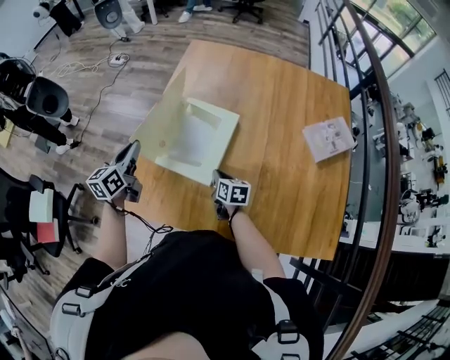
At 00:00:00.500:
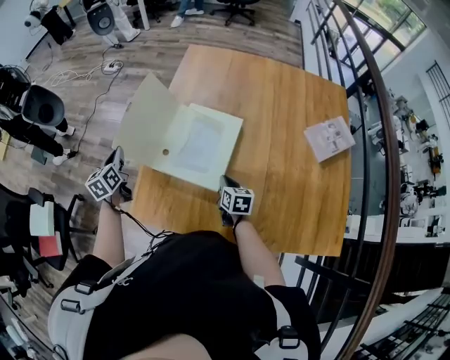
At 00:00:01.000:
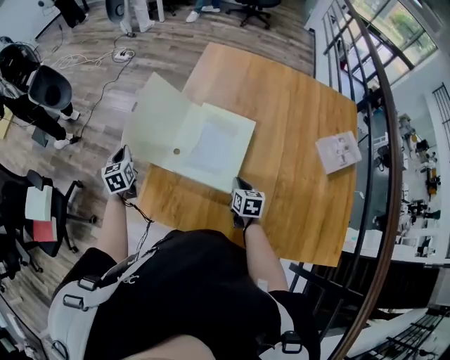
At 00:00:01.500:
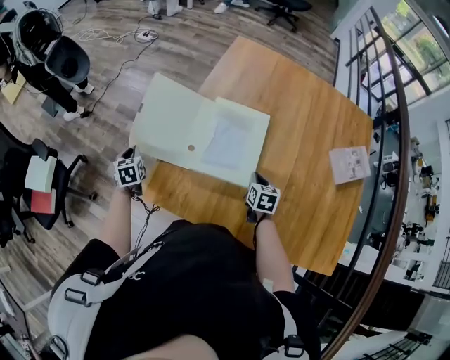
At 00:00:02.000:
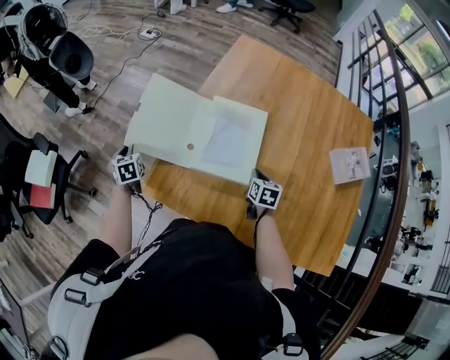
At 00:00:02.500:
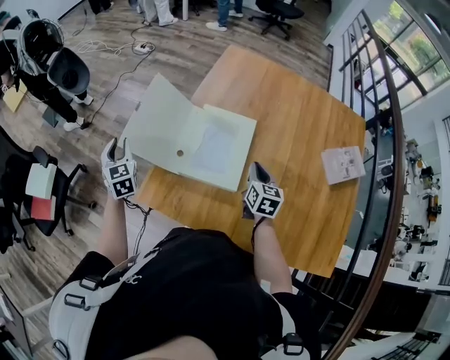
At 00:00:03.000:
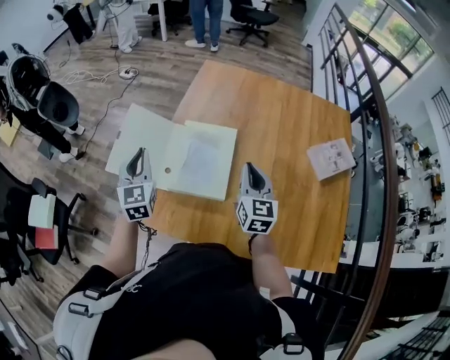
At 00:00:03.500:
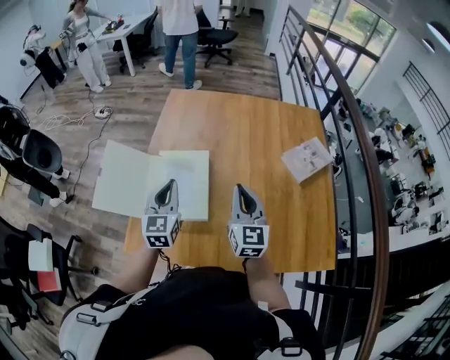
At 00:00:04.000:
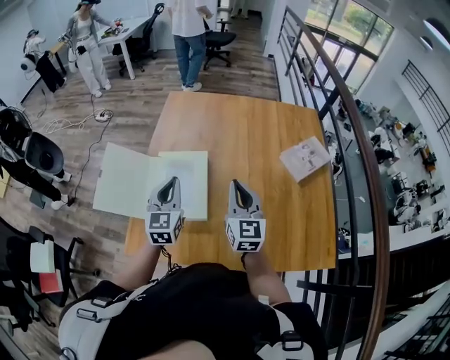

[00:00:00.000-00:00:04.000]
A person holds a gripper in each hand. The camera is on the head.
00:00:00.000 to 00:00:02.000: The left gripper goes roughly 30 cm to the left and downward, and turns by approximately 50 degrees.
00:00:02.000 to 00:00:04.000: The right gripper is displaced upward by about 25 cm, and angles its fingers upward, by some 40 degrees, while the left gripper ends up roughly 50 cm from where it was, and angles its fingers upward, by approximately 30 degrees.

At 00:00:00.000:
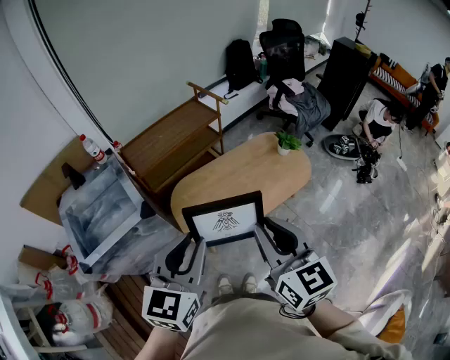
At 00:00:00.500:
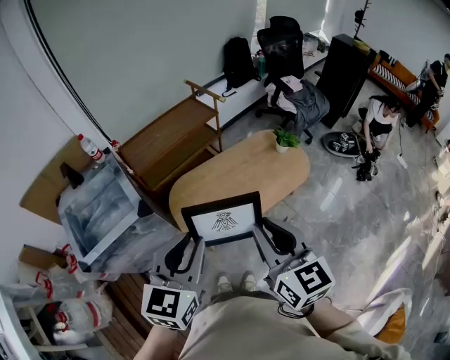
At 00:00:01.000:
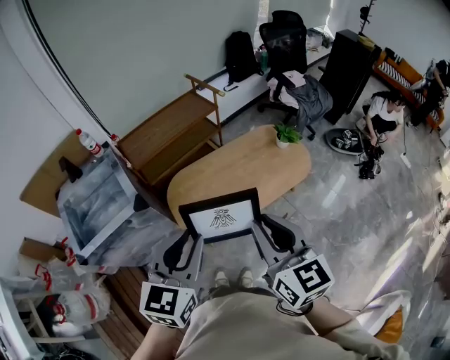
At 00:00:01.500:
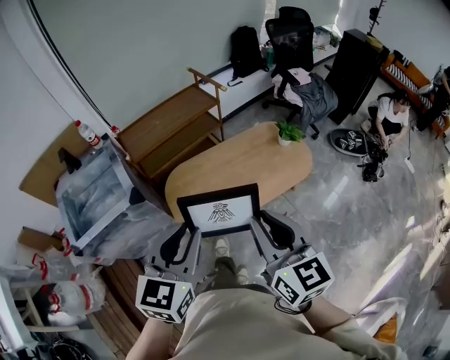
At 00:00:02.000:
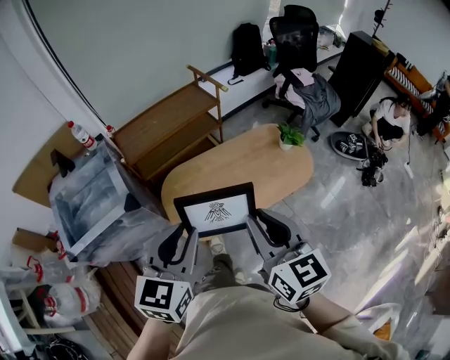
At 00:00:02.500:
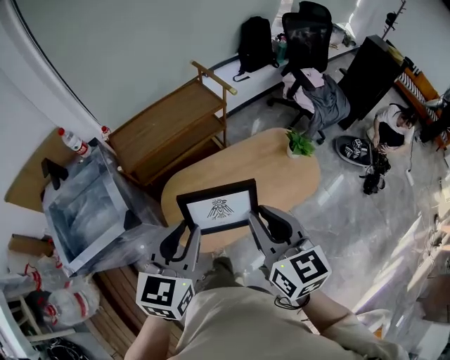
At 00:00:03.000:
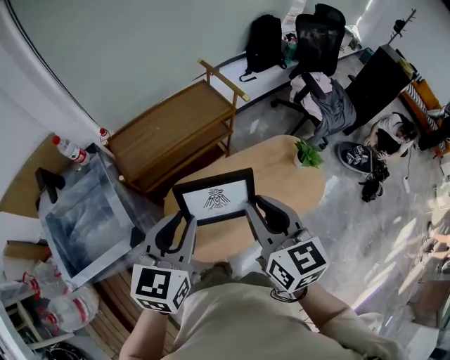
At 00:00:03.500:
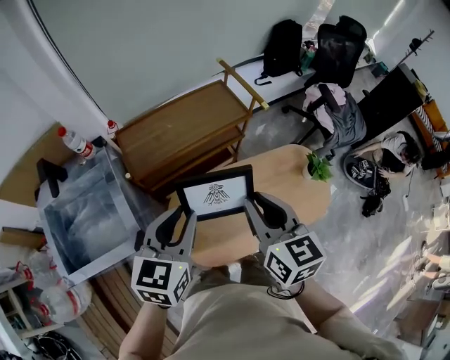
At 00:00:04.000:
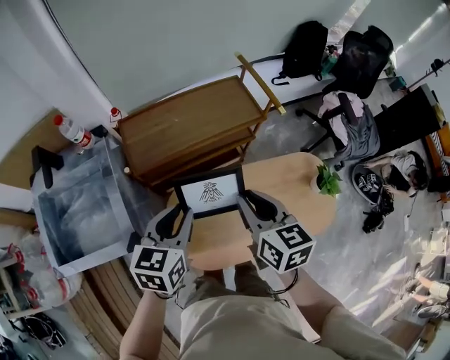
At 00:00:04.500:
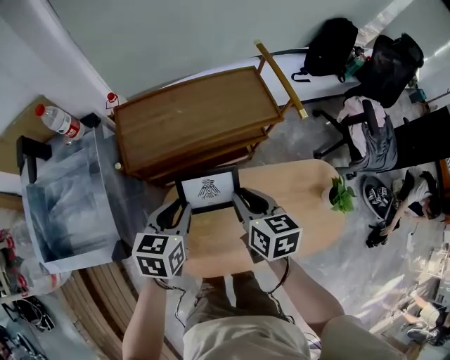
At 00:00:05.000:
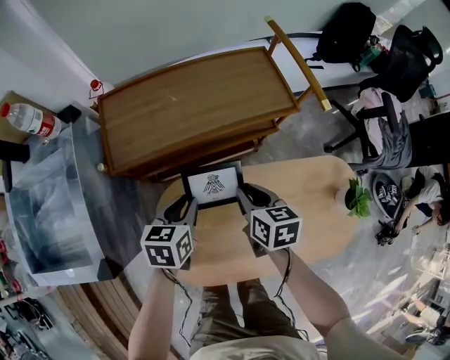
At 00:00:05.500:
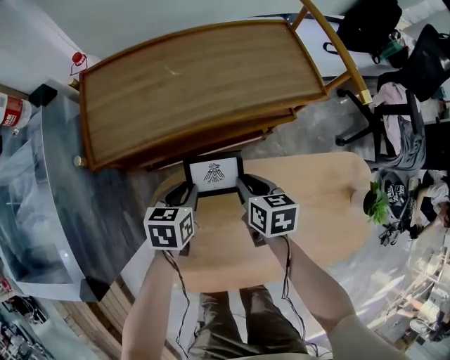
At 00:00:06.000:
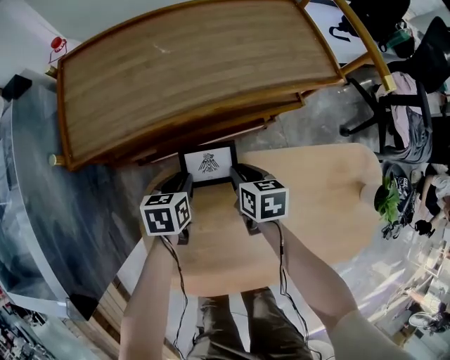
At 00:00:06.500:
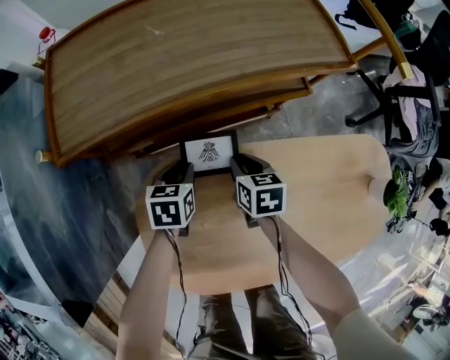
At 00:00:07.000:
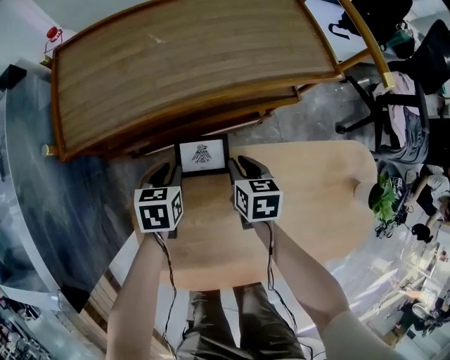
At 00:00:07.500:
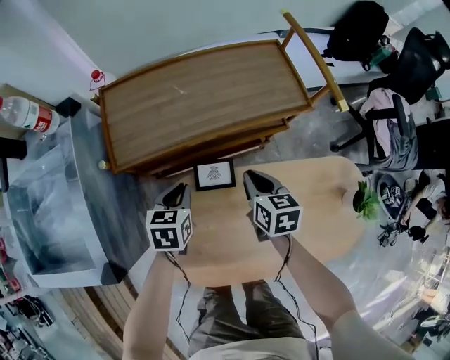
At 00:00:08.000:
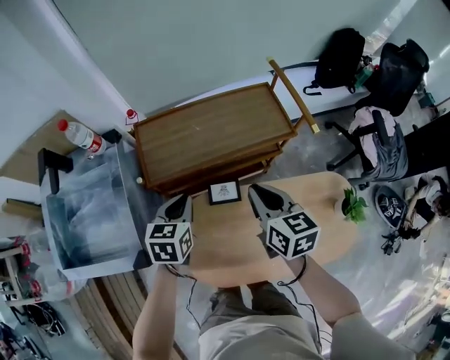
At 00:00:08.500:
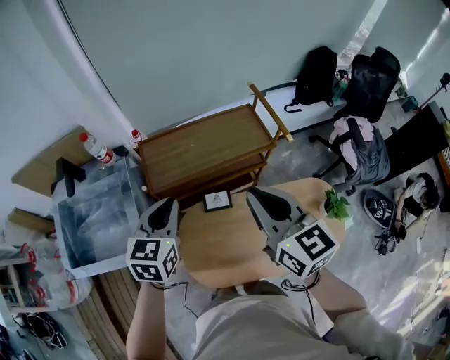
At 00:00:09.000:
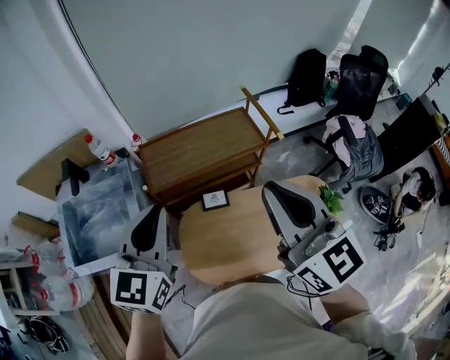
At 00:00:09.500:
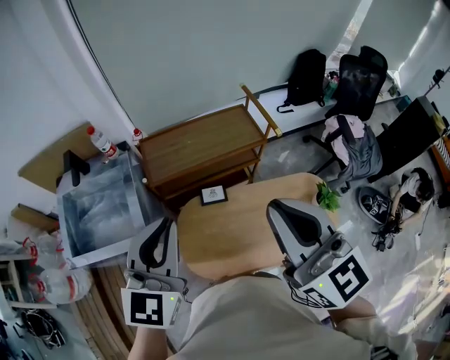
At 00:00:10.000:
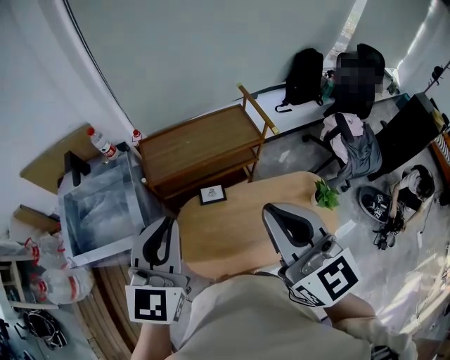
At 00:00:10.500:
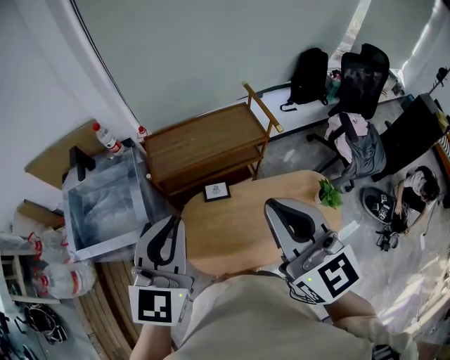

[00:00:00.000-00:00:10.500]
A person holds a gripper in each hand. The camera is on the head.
00:00:00.000 to 00:00:02.000: Both grippers move forward and to the right, approximately 10 cm.
00:00:02.000 to 00:00:04.000: The left gripper moves forward and downward, some 40 cm, and swivels about 20 degrees, while the right gripper goes about 40 cm forward, and rotates approximately 20 degrees.
00:00:04.000 to 00:00:06.500: The grippers both shift downward by approximately 60 cm. The right gripper changes its angle by approximately 30 degrees. The left gripper changes its angle by some 30 degrees.
00:00:06.500 to 00:00:08.500: The two grippers go some 70 cm upward. The right gripper tilts its fingers approximately 40 degrees upward. The left gripper changes its angle by roughly 30 degrees.
00:00:08.500 to 00:00:10.500: The grippers both shift backward and upward by approximately 20 cm.

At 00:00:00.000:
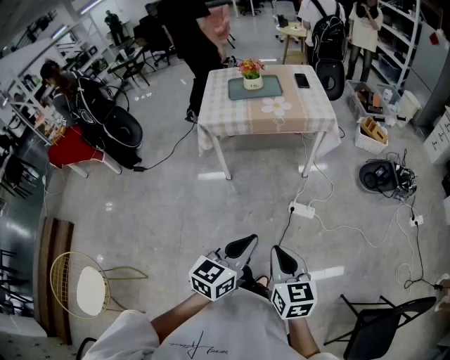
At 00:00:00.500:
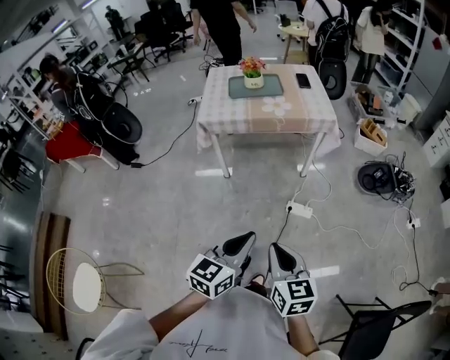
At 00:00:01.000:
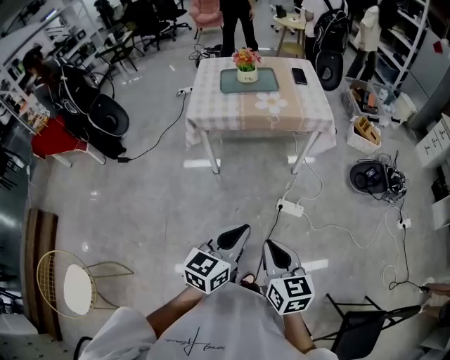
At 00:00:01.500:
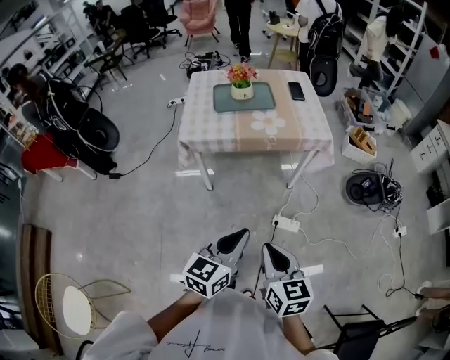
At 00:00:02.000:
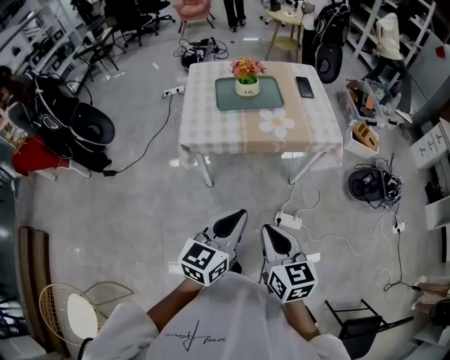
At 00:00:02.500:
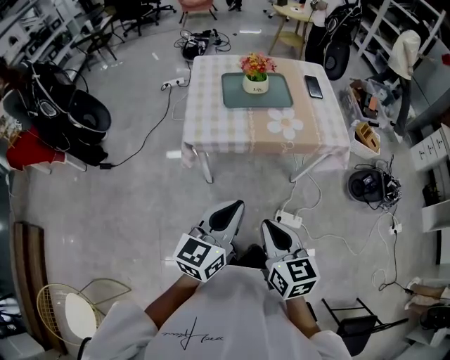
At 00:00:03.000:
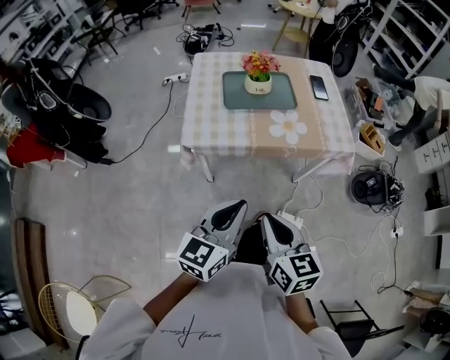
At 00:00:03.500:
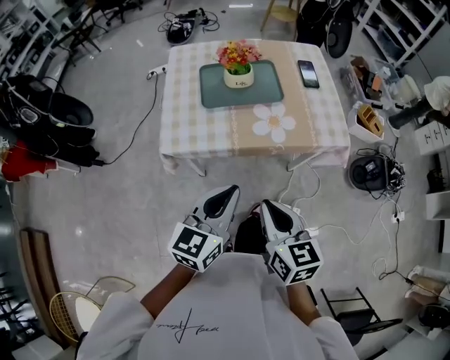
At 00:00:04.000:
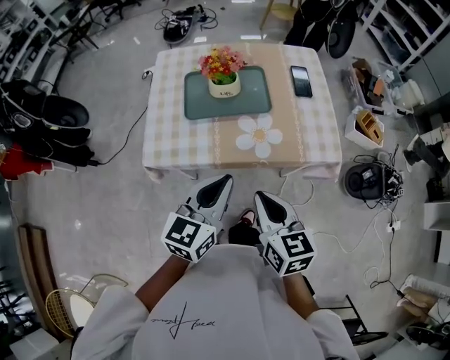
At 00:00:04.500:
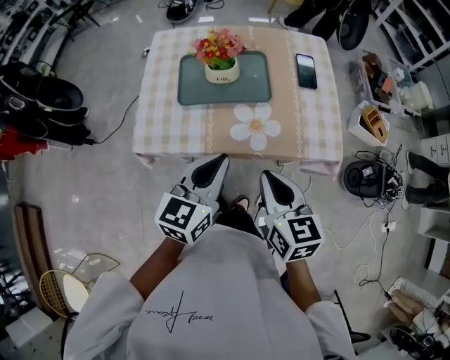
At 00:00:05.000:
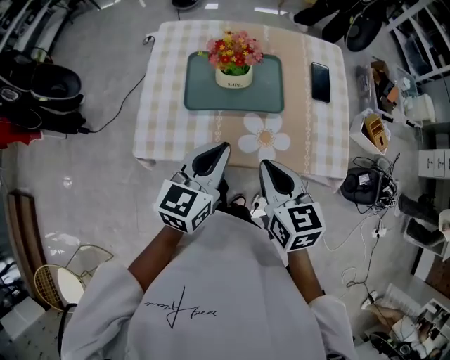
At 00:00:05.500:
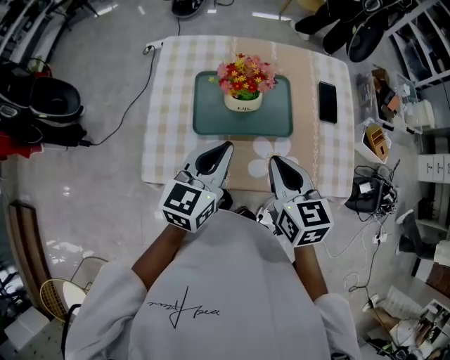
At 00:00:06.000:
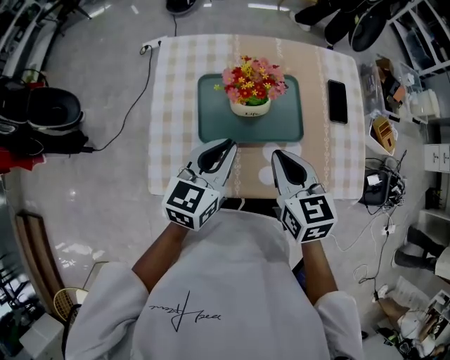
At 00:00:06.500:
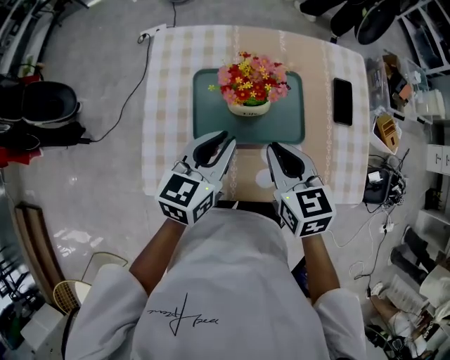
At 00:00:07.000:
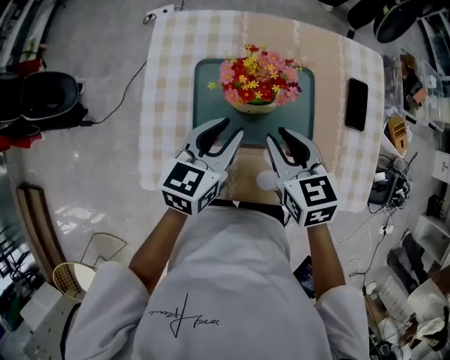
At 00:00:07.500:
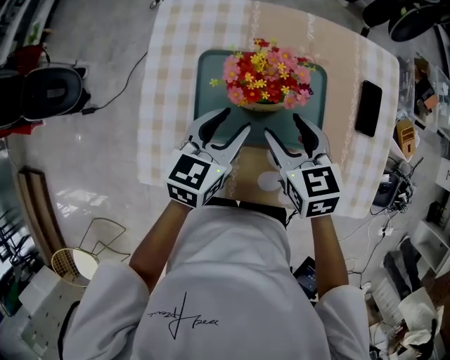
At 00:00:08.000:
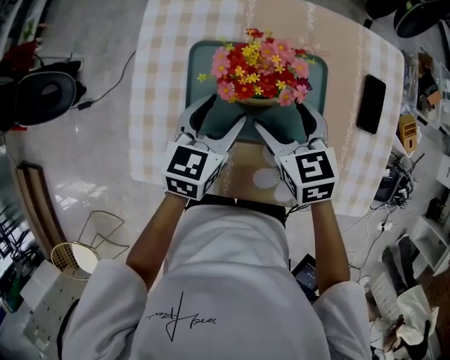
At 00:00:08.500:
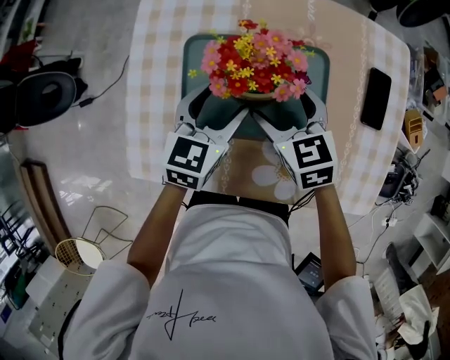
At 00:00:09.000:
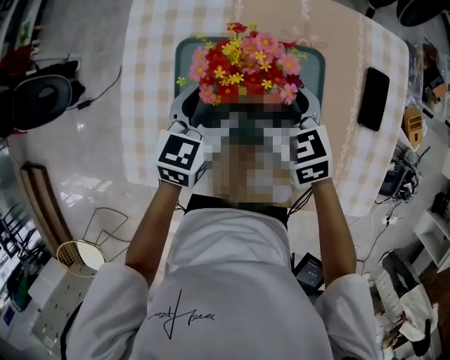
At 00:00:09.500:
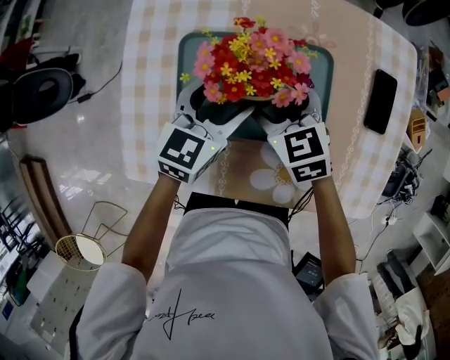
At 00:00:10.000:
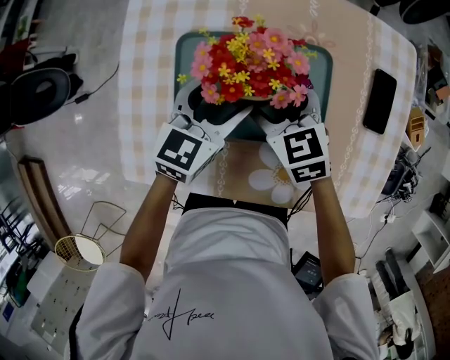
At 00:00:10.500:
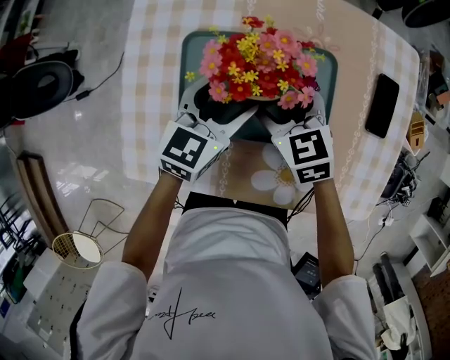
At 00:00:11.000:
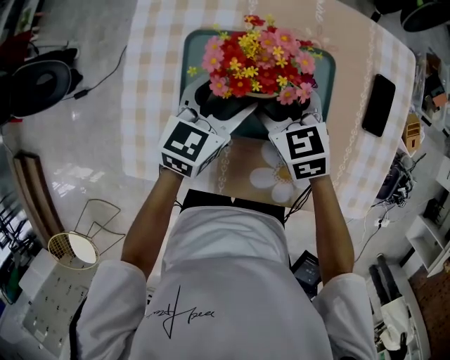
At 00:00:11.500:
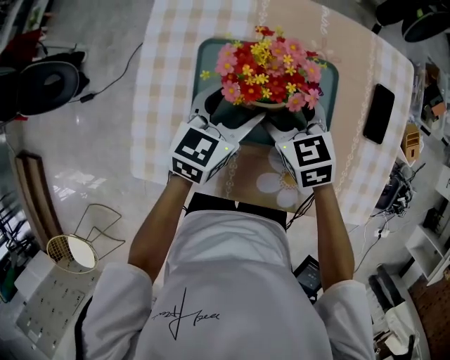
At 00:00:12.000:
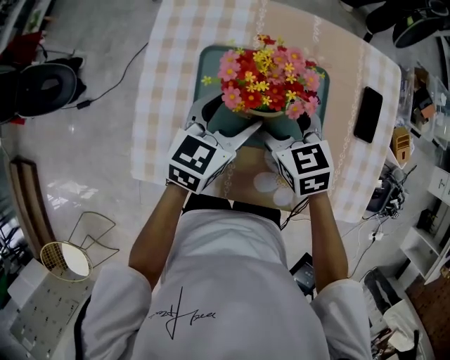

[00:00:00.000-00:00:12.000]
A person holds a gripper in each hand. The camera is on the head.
00:00:00.000 to 00:00:02.000: The two grippers go approximately 30 cm forward and to the left.
00:00:02.000 to 00:00:04.000: Both grippers travel together forward, approximately 30 cm.
00:00:04.000 to 00:00:06.000: The grippers both shift forward by some 25 cm.
00:00:06.000 to 00:00:08.000: The right gripper shifts approximately 15 cm forward and downward, and opens up. Meanwhile the left gripper is displaced downward and forward by roughly 15 cm, and opens up.
00:00:08.000 to 00:00:10.000: The right gripper moves some 5 cm. Meanwhile the left gripper ends up approximately 5 cm from where it was.
00:00:10.000 to 00:00:12.000: The left gripper shifts by about 5 cm; the right gripper shifts by approximately 5 cm.
